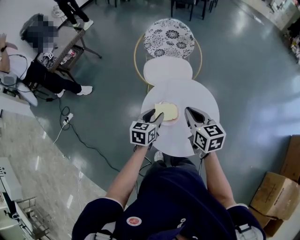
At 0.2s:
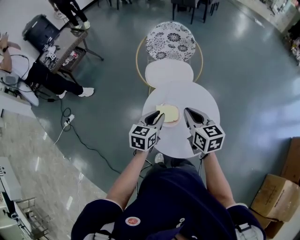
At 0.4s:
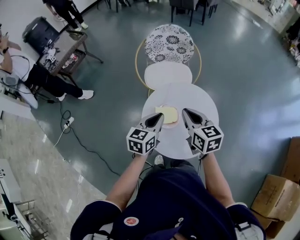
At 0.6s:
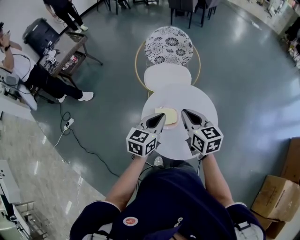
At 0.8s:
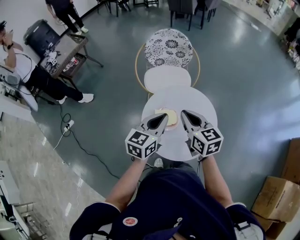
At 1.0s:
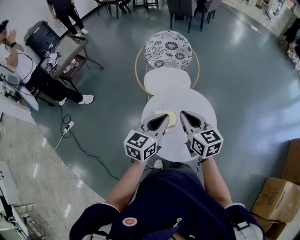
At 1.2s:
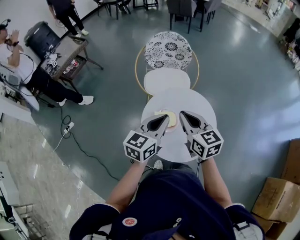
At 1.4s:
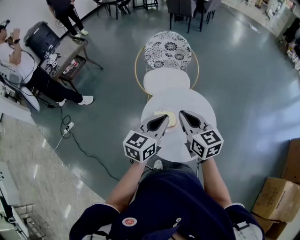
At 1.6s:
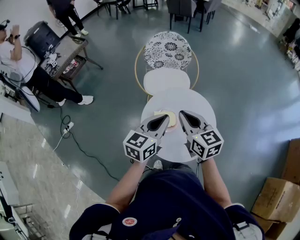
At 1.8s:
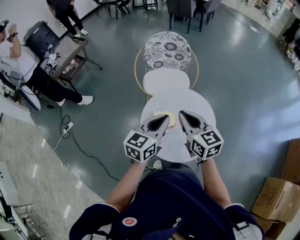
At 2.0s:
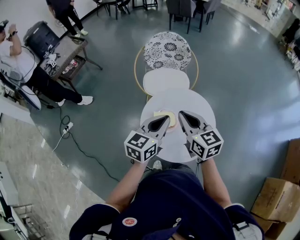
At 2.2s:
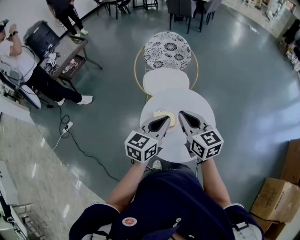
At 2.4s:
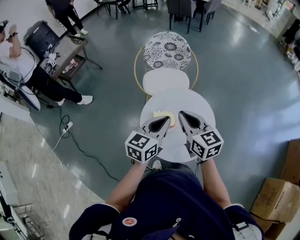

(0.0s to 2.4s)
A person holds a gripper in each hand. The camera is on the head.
0.0s - 1.2s: The right gripper shifts about 5 cm upward, while the left gripper goes about 15 cm upward, rotates some 20 degrees, and closes.
1.2s - 2.4s: Both grippers stay about where they are.

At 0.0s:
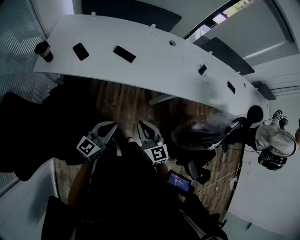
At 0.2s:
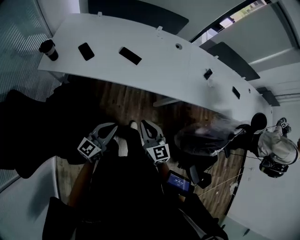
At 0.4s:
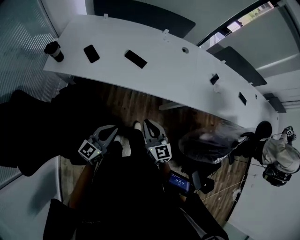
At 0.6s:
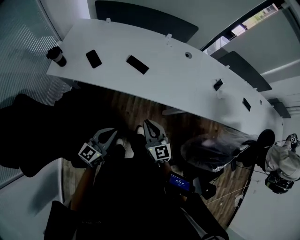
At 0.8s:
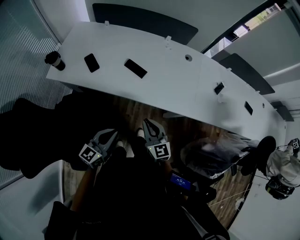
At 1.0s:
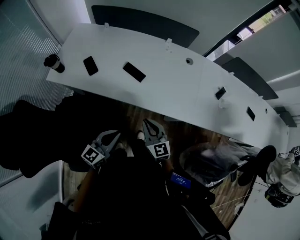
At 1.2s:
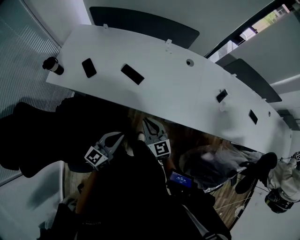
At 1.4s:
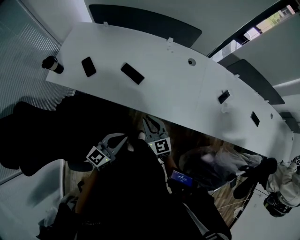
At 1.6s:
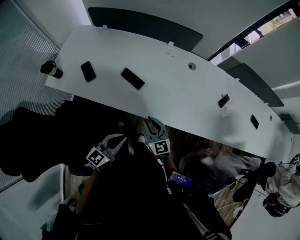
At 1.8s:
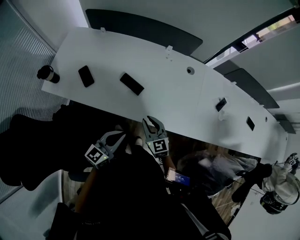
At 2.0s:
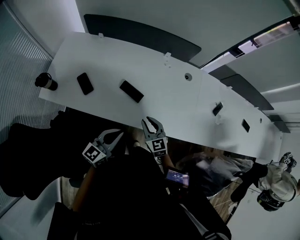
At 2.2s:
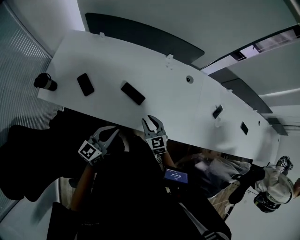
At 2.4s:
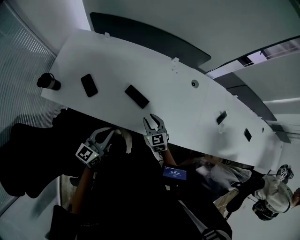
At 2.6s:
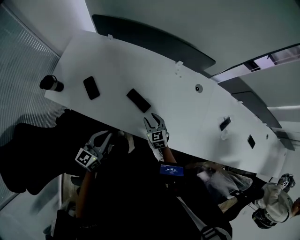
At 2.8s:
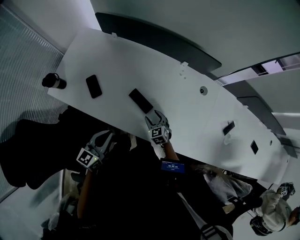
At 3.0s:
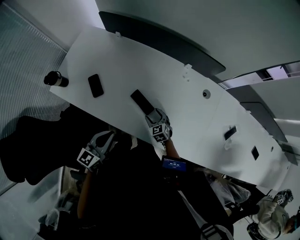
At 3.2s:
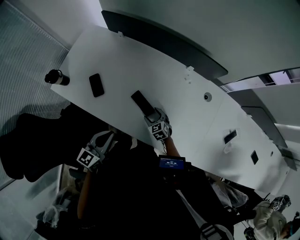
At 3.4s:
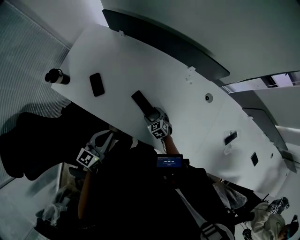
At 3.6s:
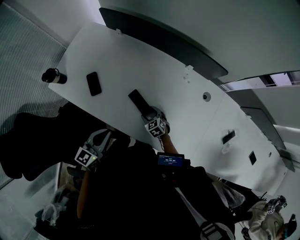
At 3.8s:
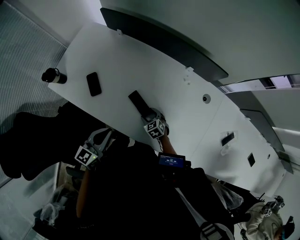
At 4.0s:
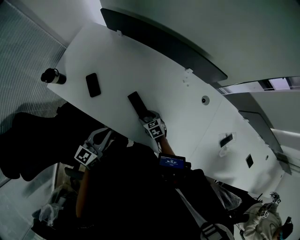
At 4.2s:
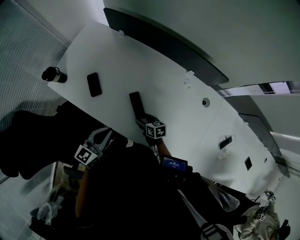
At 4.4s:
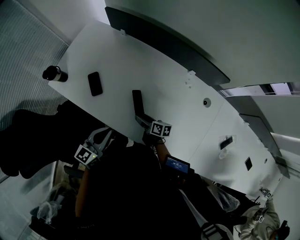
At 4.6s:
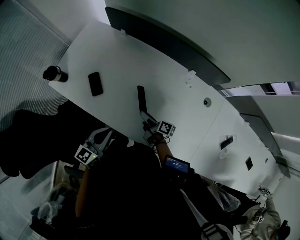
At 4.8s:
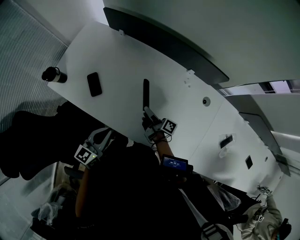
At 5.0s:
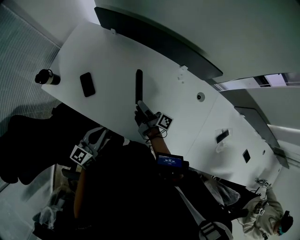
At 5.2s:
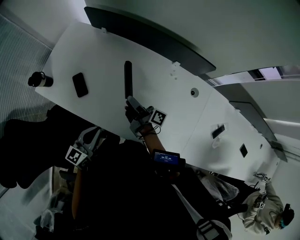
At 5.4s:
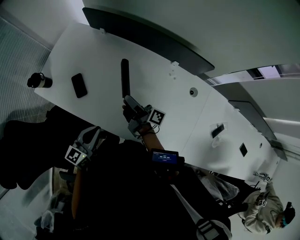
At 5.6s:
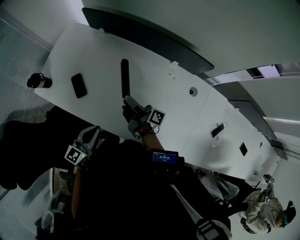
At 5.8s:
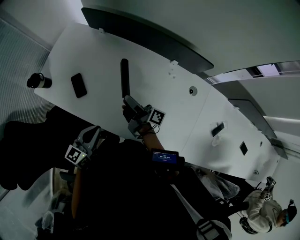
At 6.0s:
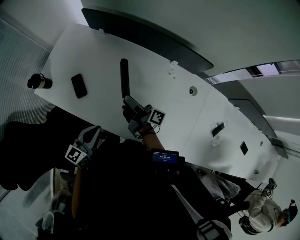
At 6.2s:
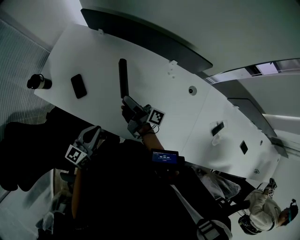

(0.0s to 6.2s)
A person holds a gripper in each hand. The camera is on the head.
0.0s - 1.6s: The left gripper moves forward and to the right, approximately 20 cm. The right gripper goes roughly 25 cm forward.
1.6s - 3.2s: The right gripper shifts roughly 30 cm forward and downward, rotates some 30 degrees, and opens up. The left gripper shifts roughly 20 cm forward and to the left.
3.2s - 4.6s: The right gripper goes roughly 5 cm upward, and rotates around the line of its fingers by roughly 80 degrees, clockwise from behind.
4.6s - 6.2s: The right gripper moves upward, roughly 15 cm, and changes its angle by approximately 30 degrees.

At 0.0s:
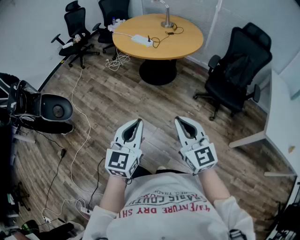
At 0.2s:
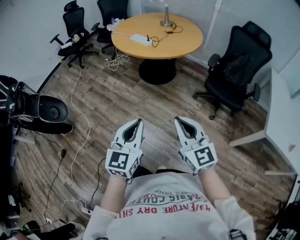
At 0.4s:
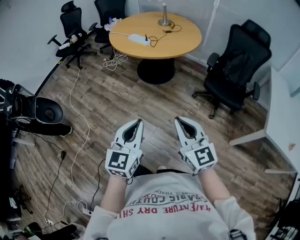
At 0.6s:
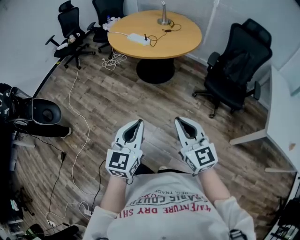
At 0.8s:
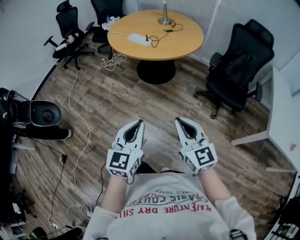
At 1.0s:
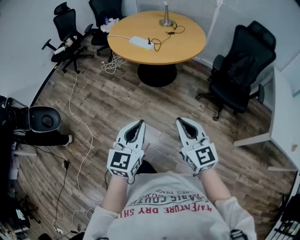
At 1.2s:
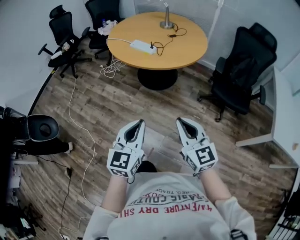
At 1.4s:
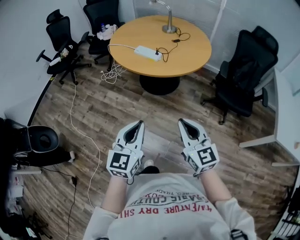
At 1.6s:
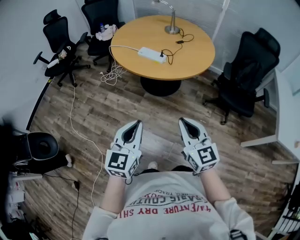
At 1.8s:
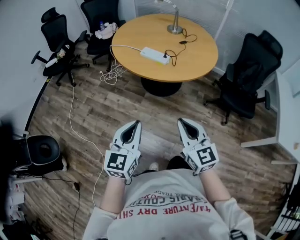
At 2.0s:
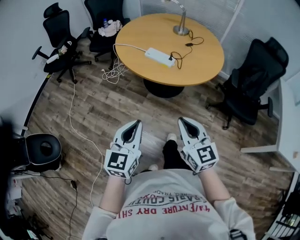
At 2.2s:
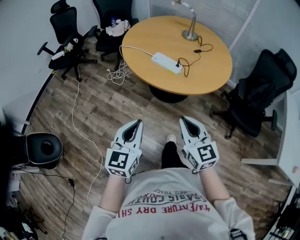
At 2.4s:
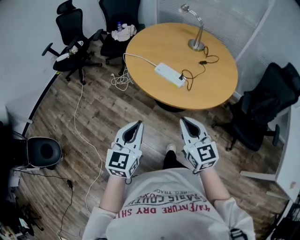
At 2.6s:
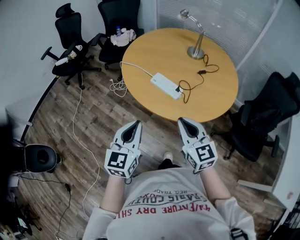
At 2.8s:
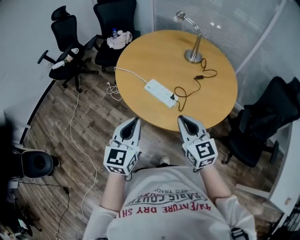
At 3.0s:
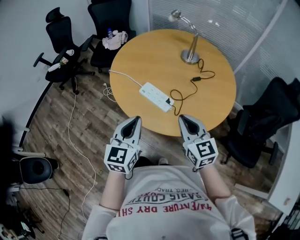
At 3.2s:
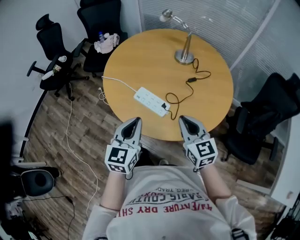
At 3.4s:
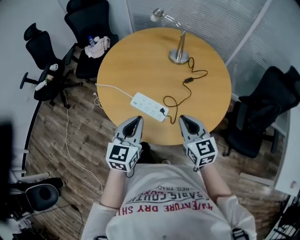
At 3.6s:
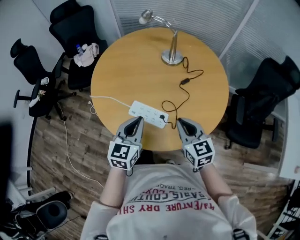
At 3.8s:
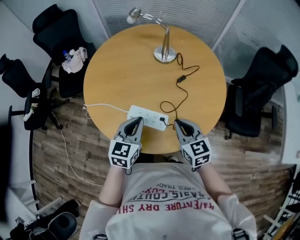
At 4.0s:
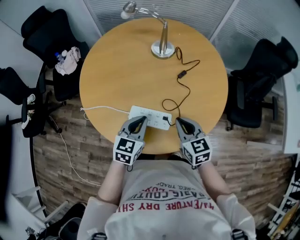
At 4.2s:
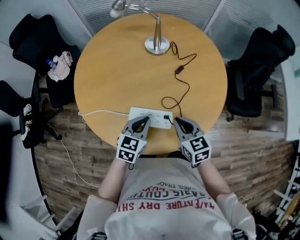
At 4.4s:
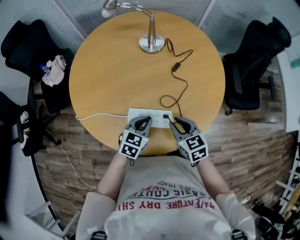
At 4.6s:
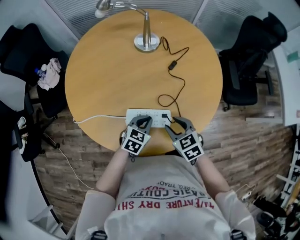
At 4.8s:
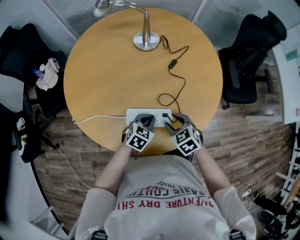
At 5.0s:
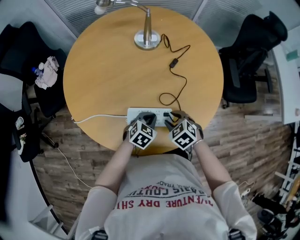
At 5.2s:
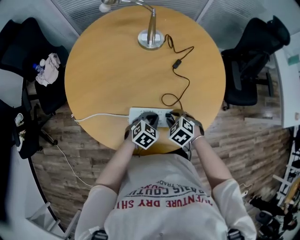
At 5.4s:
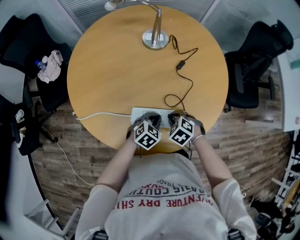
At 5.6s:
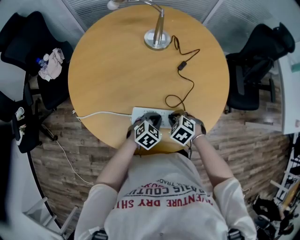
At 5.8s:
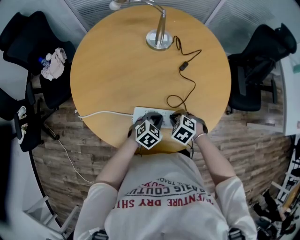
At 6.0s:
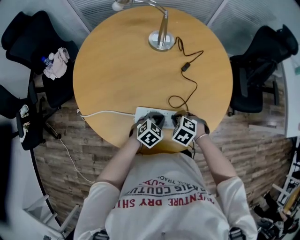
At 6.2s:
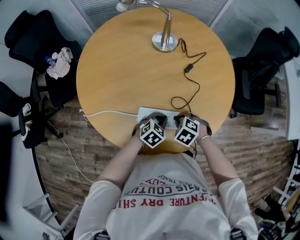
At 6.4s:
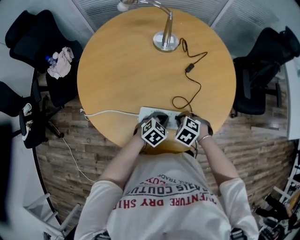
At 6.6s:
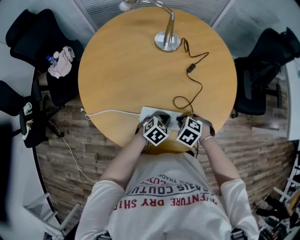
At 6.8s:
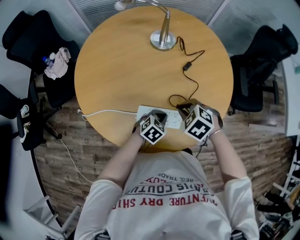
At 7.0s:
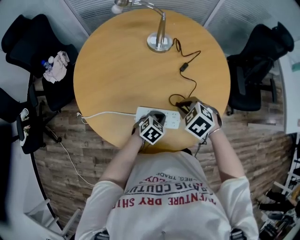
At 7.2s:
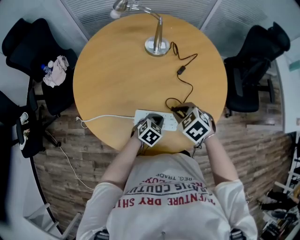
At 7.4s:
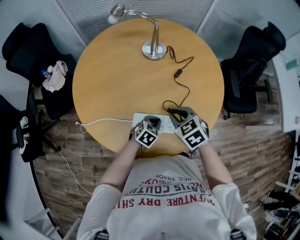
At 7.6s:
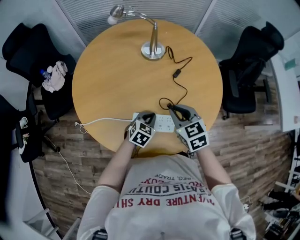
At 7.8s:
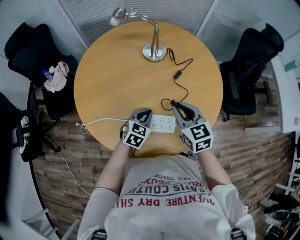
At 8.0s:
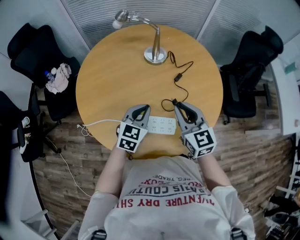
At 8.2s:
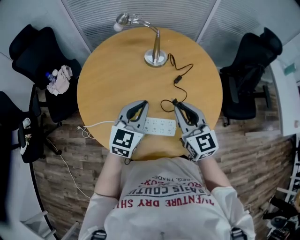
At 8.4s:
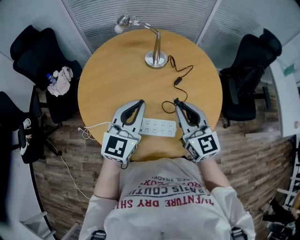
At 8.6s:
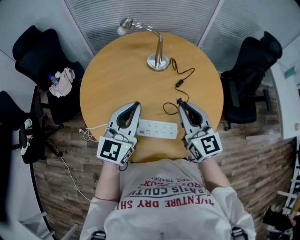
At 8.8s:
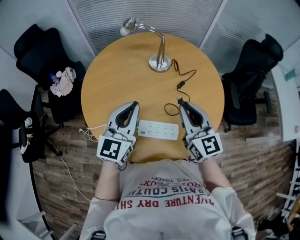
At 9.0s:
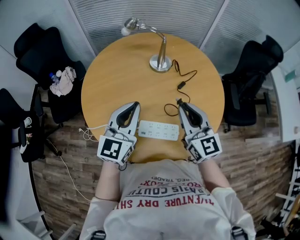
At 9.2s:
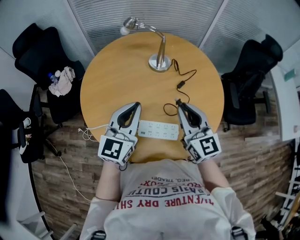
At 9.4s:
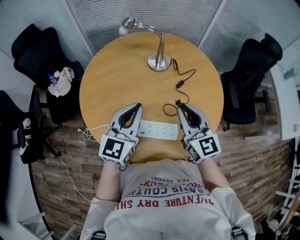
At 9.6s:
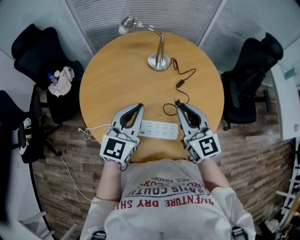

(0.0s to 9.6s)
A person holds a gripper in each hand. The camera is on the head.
0.0s - 1.6s: The two grippers go about 35 cm forward and to the left.
1.6s - 3.2s: The pair of grippers is taken forward, approximately 40 cm.
3.2s - 4.8s: The grippers both shift downward by some 25 cm. The left gripper tips its fingers downward by roughly 30 degrees, while the right gripper tips its fingers downward by approximately 40 degrees, and opens its fingers.
4.8s - 6.4s: The right gripper turns by approximately 30 degrees, and closes its fingers.
6.4s - 8.0s: Both grippers move upward, roughly 20 cm. The left gripper changes its angle by about 30 degrees; the right gripper angles its fingers upward, by about 60 degrees.
8.0s - 9.6s: The left gripper moves upward, approximately 15 cm, and rotates some 20 degrees. The right gripper travels upward by about 5 cm.

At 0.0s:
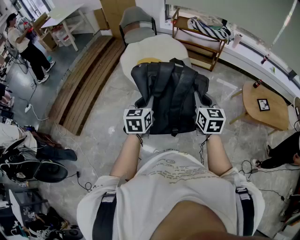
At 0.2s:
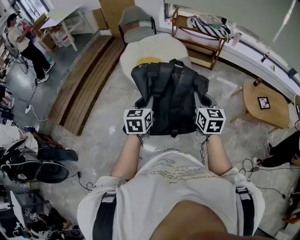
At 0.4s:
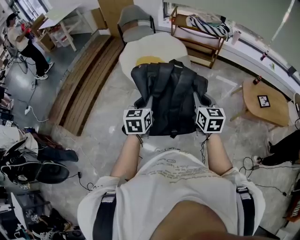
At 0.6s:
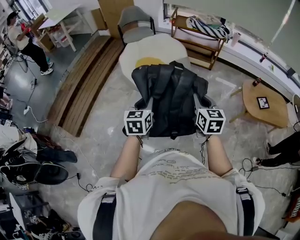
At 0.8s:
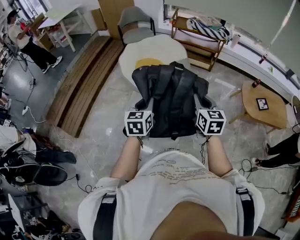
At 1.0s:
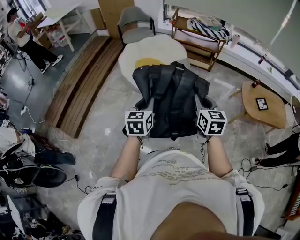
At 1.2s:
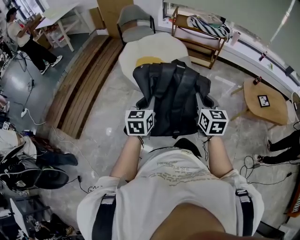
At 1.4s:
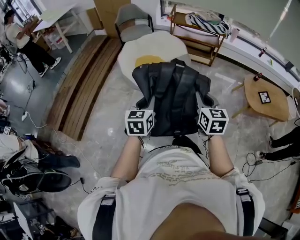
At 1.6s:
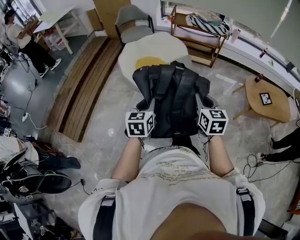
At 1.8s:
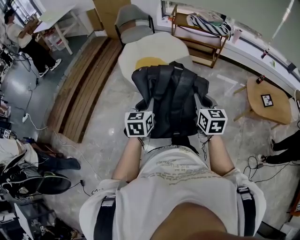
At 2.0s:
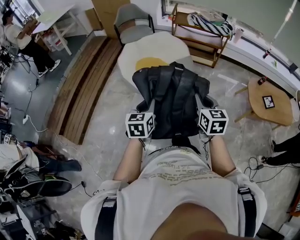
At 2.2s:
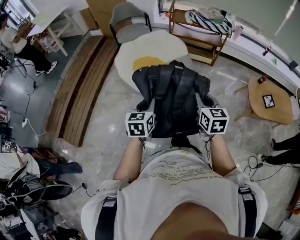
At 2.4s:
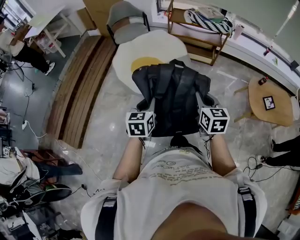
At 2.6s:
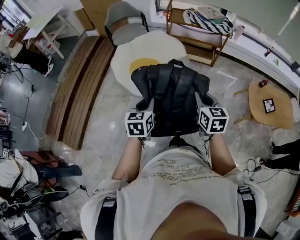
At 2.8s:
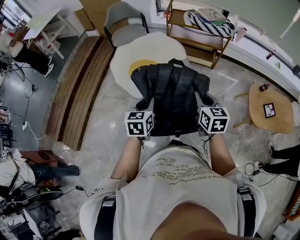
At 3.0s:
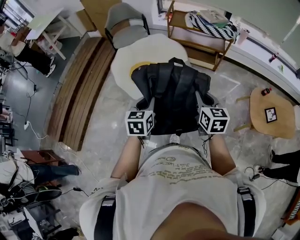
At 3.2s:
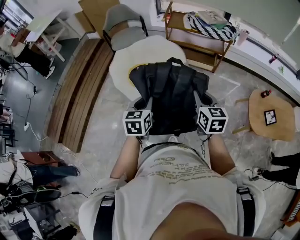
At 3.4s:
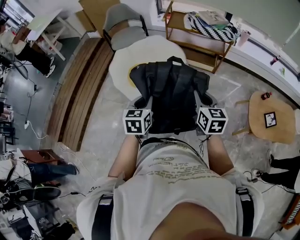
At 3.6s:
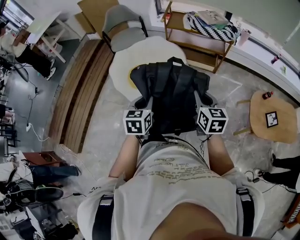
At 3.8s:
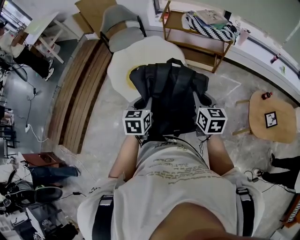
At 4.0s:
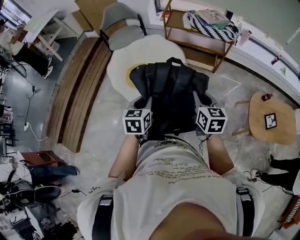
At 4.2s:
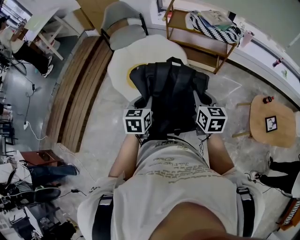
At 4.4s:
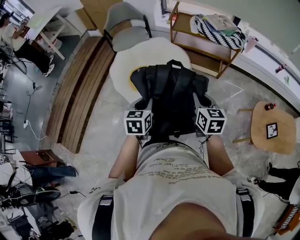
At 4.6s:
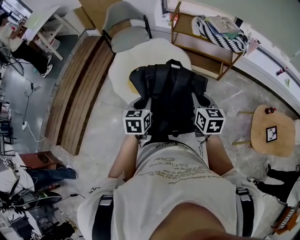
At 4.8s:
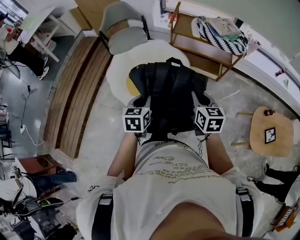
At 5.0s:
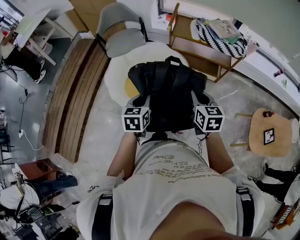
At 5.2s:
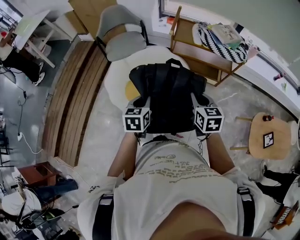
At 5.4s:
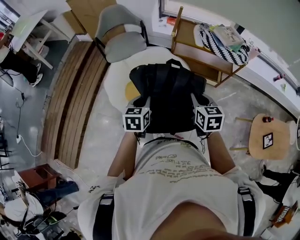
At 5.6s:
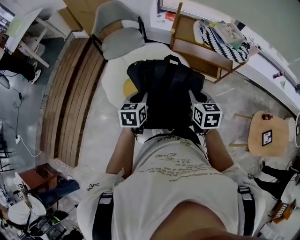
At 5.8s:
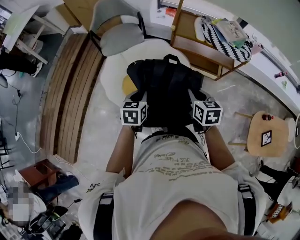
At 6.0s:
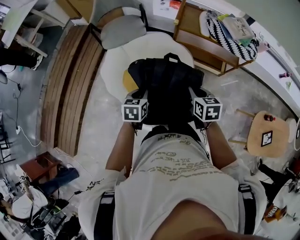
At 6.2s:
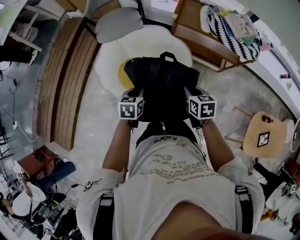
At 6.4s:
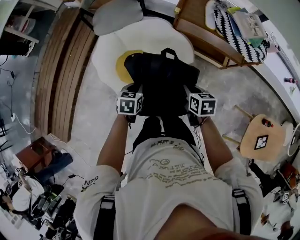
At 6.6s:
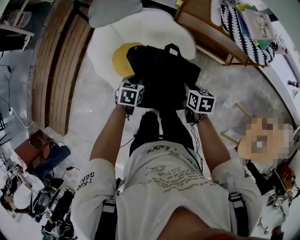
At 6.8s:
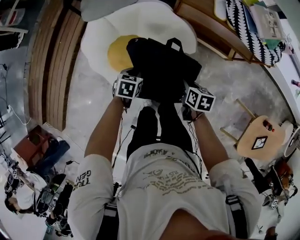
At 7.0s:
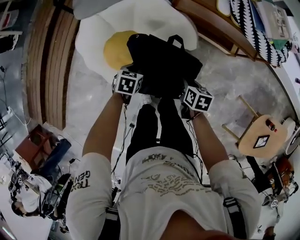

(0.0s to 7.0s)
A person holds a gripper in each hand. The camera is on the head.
0.0s - 1.4s: The left gripper moves about 5 cm, while the right gripper changes place by approximately 5 cm.
1.4s - 2.8s: Both grippers travel together forward, about 25 cm.
2.8s - 4.2s: The two grippers go some 15 cm forward.
4.2s - 5.6s: The left gripper travels forward by roughly 25 cm. The right gripper shifts some 25 cm forward and to the left.
5.6s - 7.0s: The left gripper moves downward and forward, approximately 35 cm, and swivels approximately 30 degrees; the right gripper goes about 35 cm downward, and rotates about 30 degrees.
